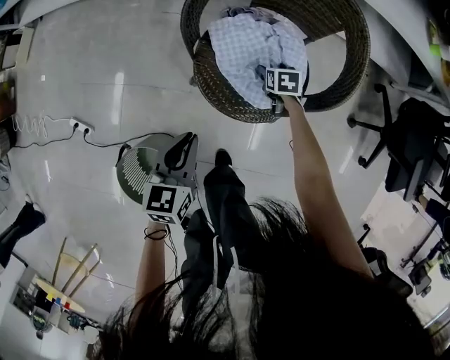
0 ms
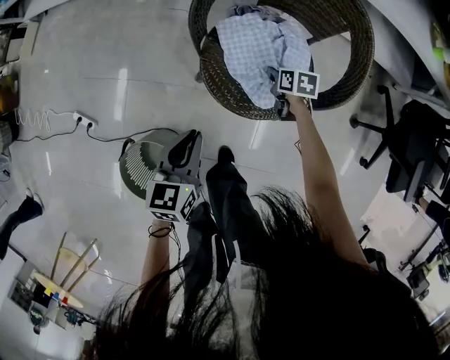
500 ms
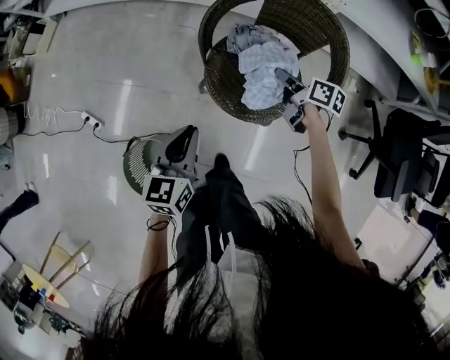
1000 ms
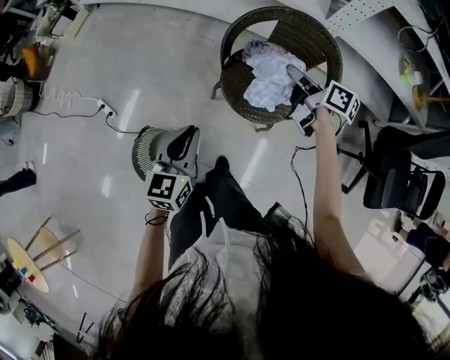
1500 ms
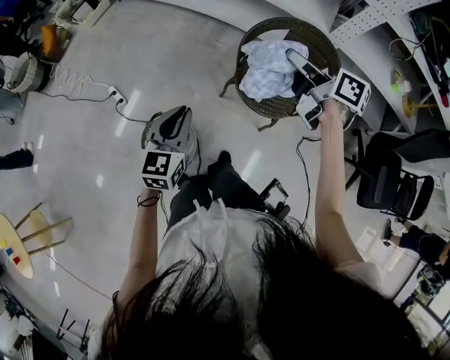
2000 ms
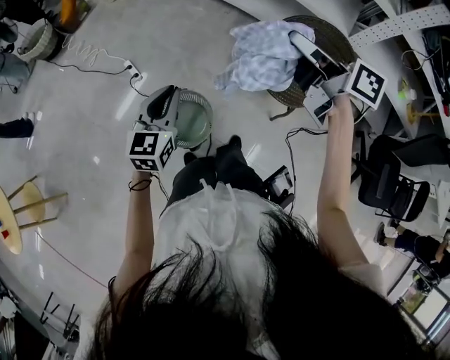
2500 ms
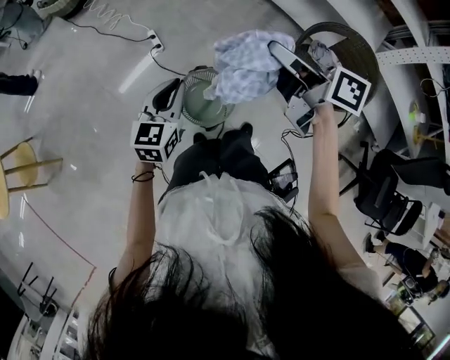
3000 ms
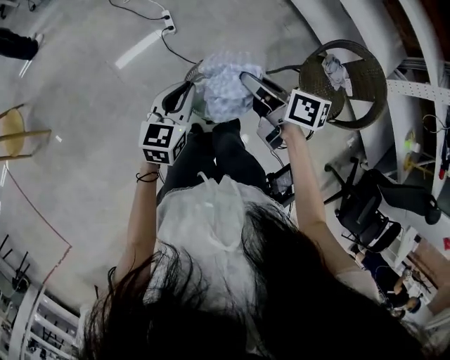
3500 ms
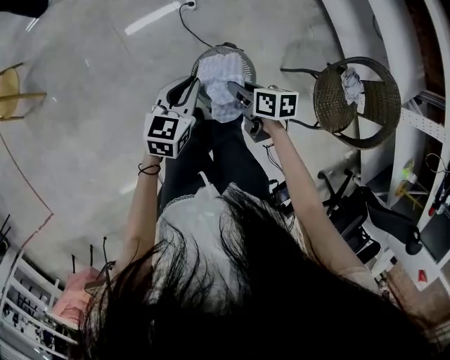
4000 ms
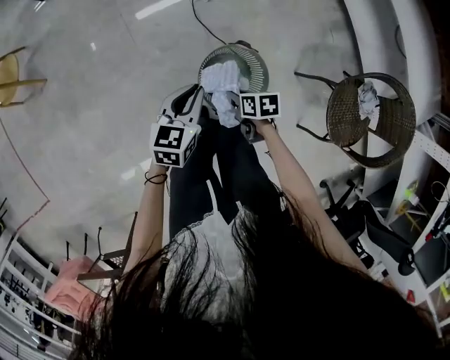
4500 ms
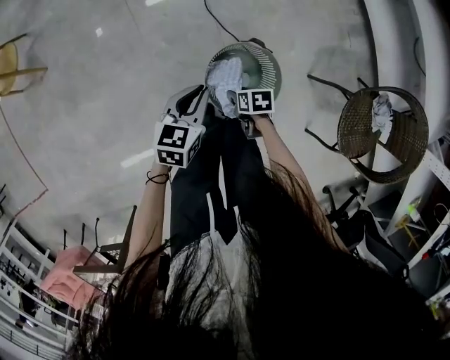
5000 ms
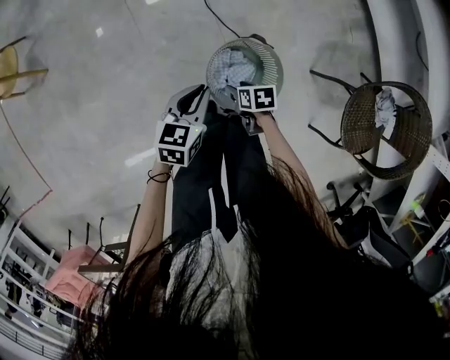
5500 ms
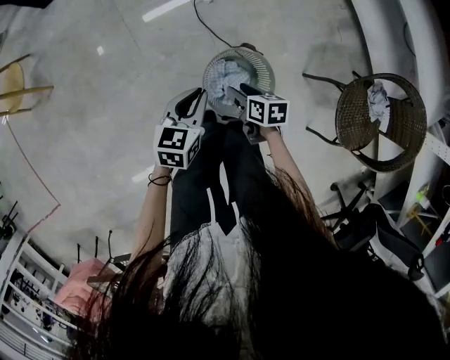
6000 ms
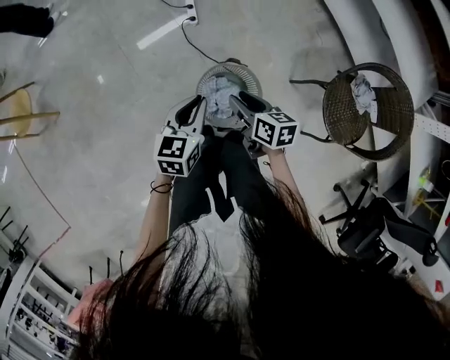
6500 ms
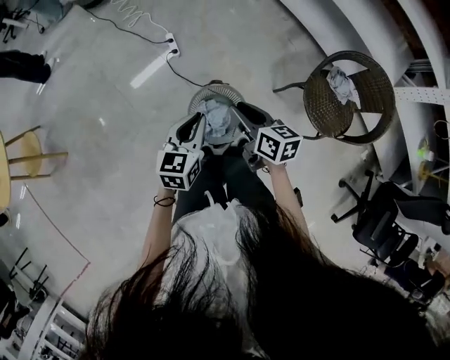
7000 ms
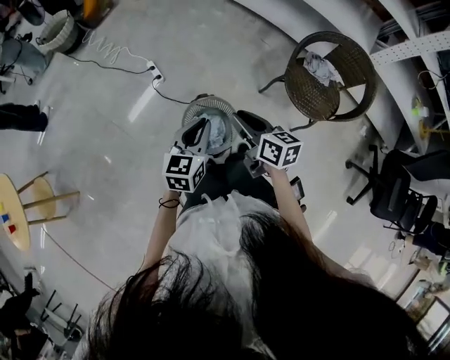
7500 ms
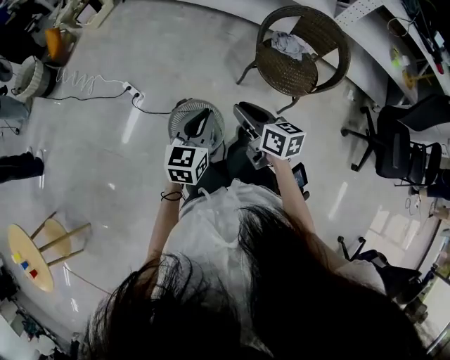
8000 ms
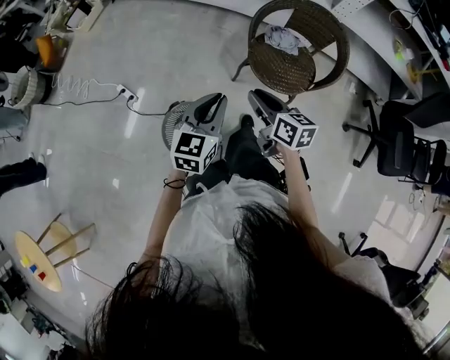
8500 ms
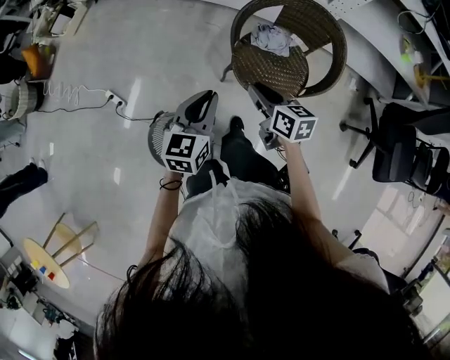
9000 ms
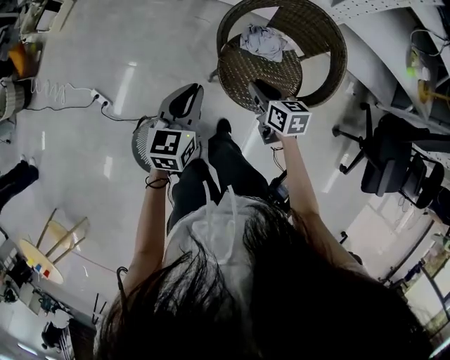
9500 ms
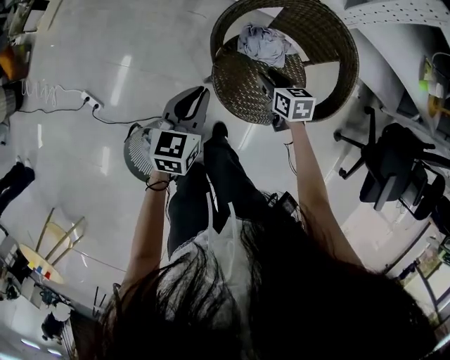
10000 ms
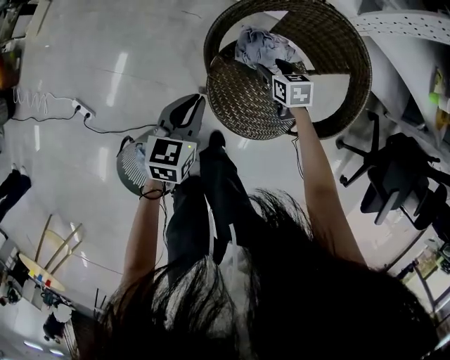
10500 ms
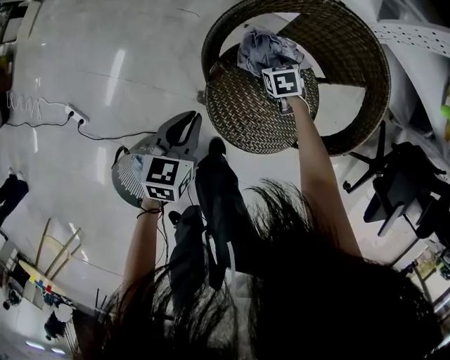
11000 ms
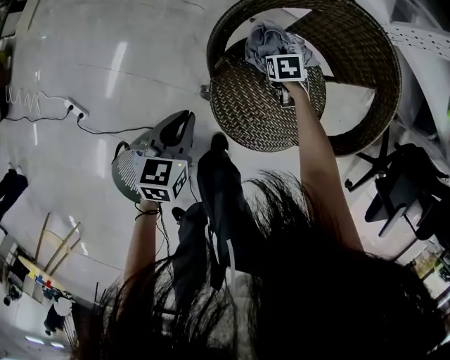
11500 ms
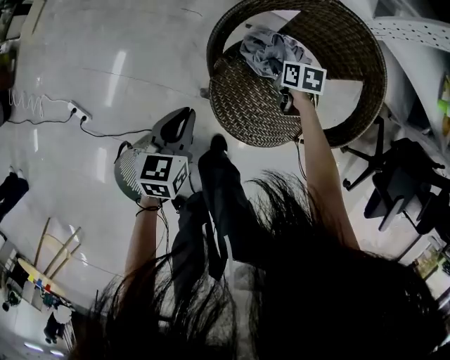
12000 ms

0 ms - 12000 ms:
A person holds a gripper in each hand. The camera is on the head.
0 ms - 2000 ms: The right gripper is displaced upward by about 60 cm, points its fingers about 50 degrees further upward, and closes up. Meanwhile the left gripper travels upward by some 25 cm, and turns by some 30 degrees.
2000 ms - 4000 ms: The left gripper ends up approximately 40 cm from where it was, and changes its angle by roughly 30 degrees; the right gripper changes place by about 60 cm, and tilts its fingers approximately 30 degrees downward.
4000 ms - 6000 ms: Both grippers travel together downward, roughly 15 cm. The right gripper opens up.
6000 ms - 8000 ms: The right gripper heads upward, covering about 30 cm, swivels some 50 degrees, and closes its fingers. The left gripper changes place by approximately 30 cm, and turns by roughly 40 degrees.
8000 ms - 10000 ms: The pair of grippers is taken forward and to the right, approximately 50 cm. The right gripper shifts some 25 cm downward, and changes its angle by approximately 20 degrees, while the left gripper is displaced downward by approximately 15 cm.
10000 ms - 12000 ms: The grippers both shift downward by some 15 cm. The right gripper opens and closes again.

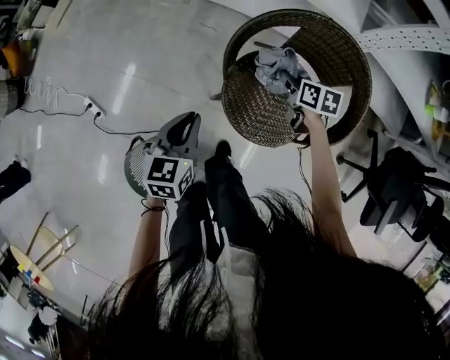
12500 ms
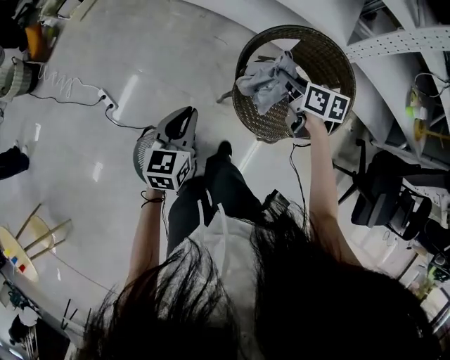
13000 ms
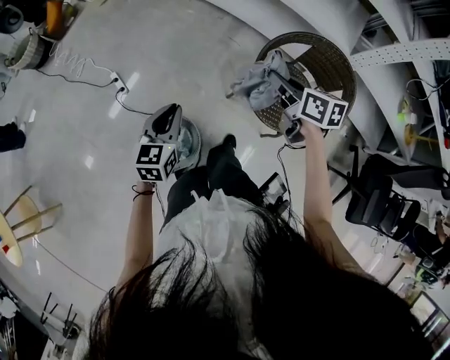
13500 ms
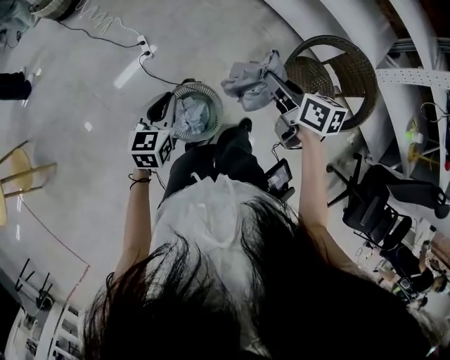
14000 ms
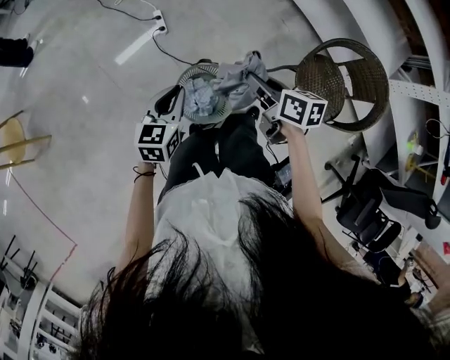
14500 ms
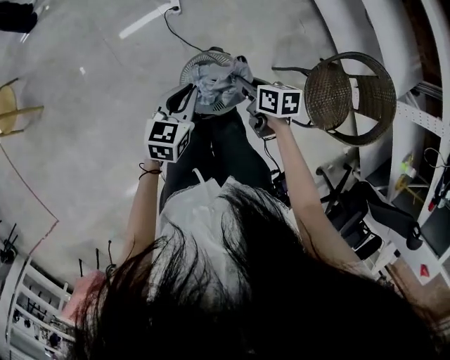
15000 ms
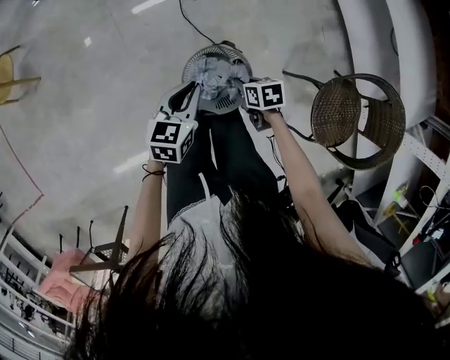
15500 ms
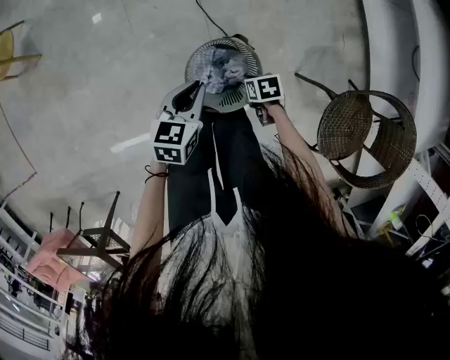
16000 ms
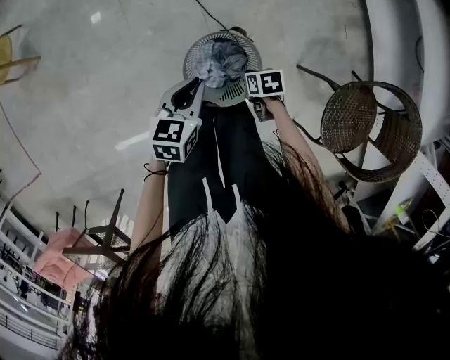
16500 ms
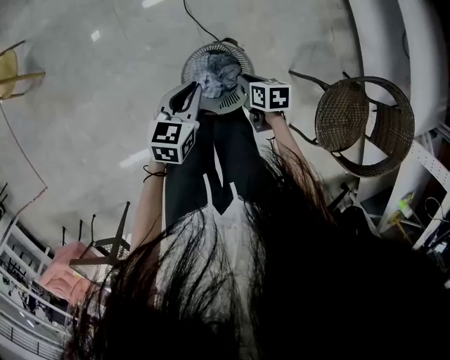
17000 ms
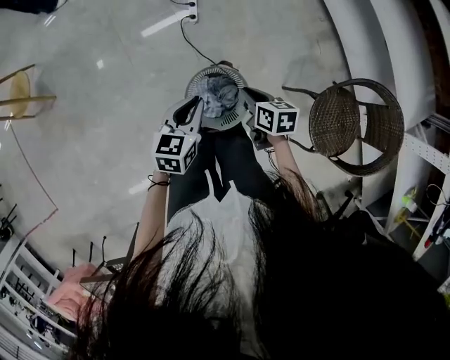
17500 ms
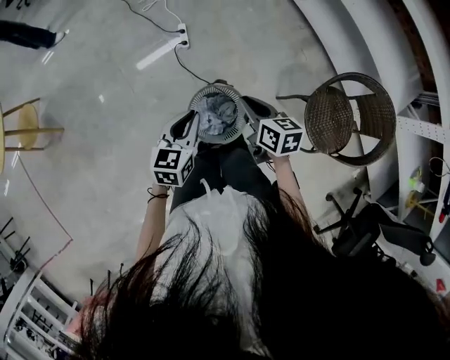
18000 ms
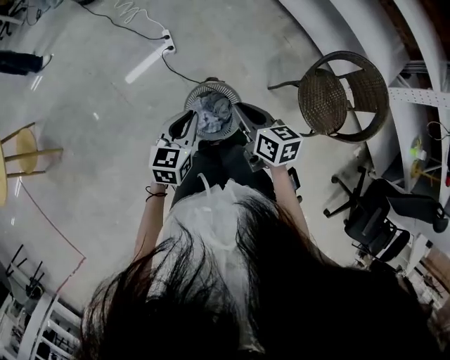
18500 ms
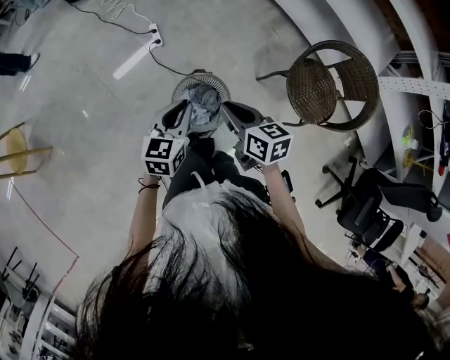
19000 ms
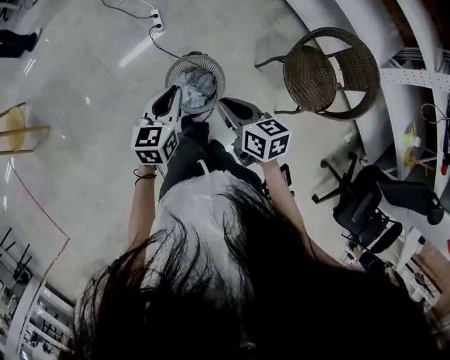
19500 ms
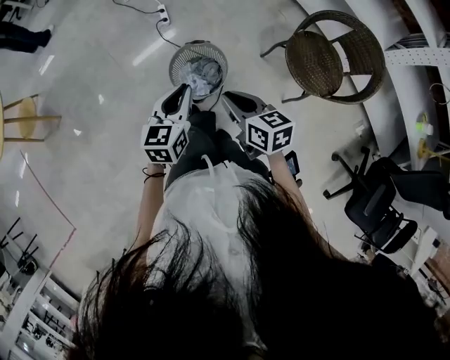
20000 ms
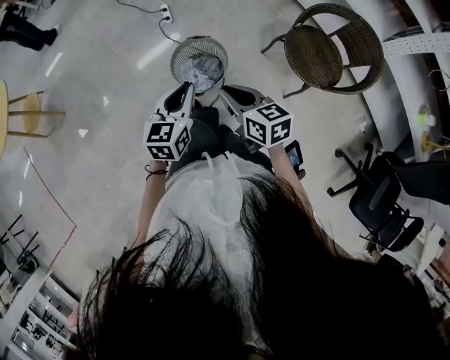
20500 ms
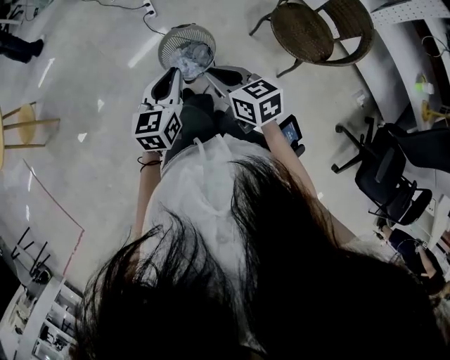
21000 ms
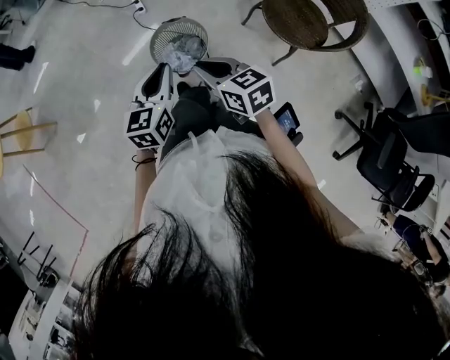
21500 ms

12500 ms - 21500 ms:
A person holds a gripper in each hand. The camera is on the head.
12500 ms - 14500 ms: The two grippers travel together, approximately 60 cm. The right gripper swivels about 40 degrees. Meanwhile the left gripper rotates about 30 degrees.
14500 ms - 17000 ms: The right gripper goes approximately 30 cm downward, and swivels roughly 30 degrees. The left gripper shifts some 10 cm downward.
17000 ms - 19500 ms: The right gripper goes about 30 cm upward, and swivels approximately 30 degrees. Meanwhile the left gripper shifts some 15 cm upward.
19500 ms - 21500 ms: Both grippers travel together backward, about 15 cm.

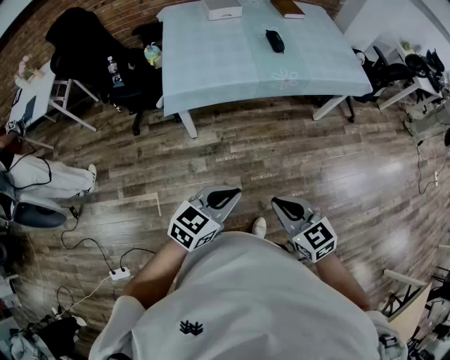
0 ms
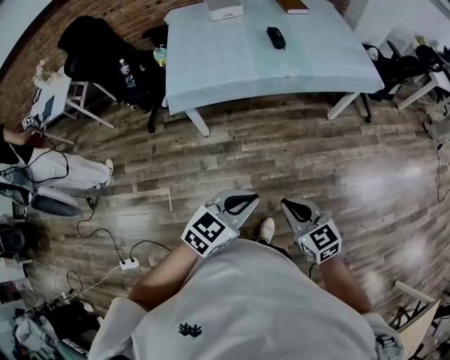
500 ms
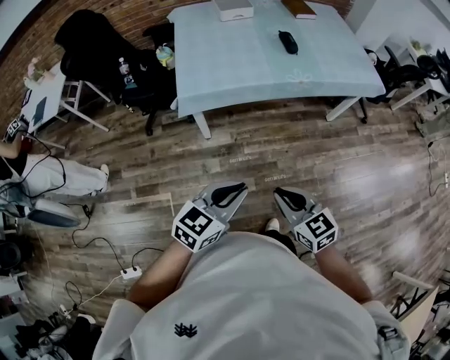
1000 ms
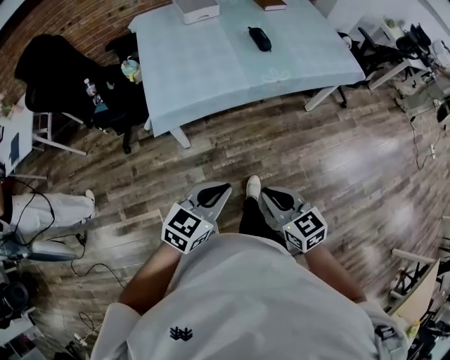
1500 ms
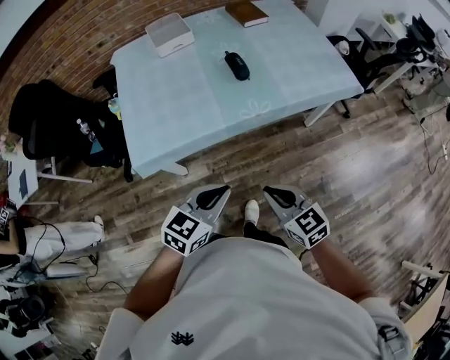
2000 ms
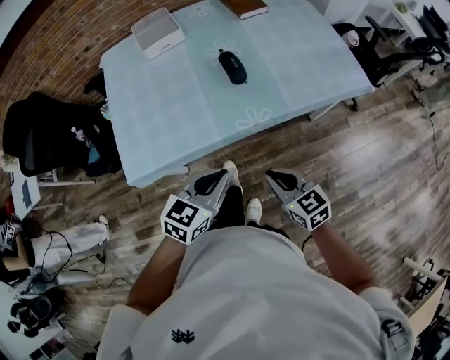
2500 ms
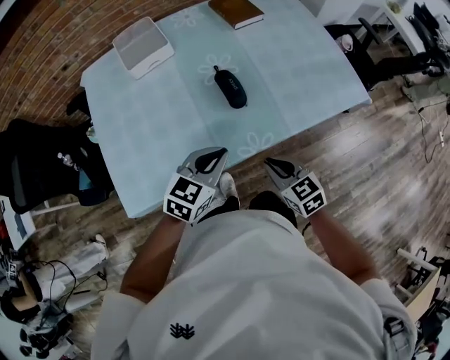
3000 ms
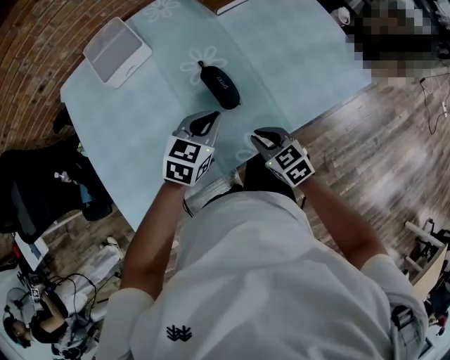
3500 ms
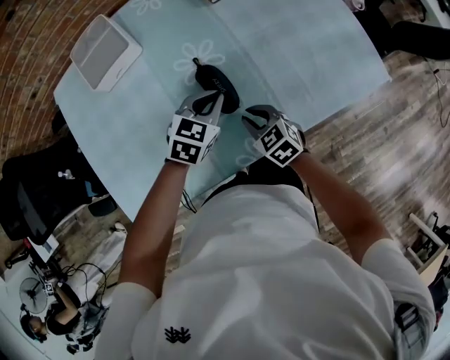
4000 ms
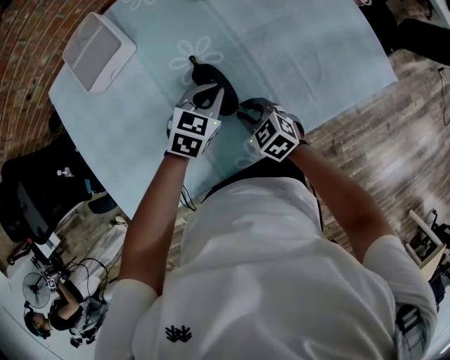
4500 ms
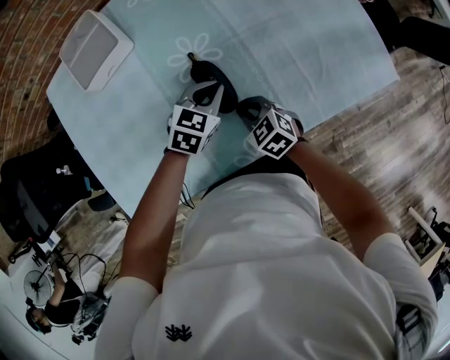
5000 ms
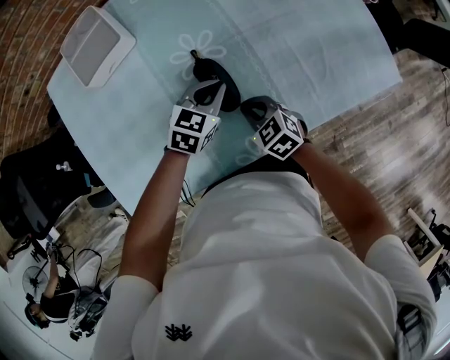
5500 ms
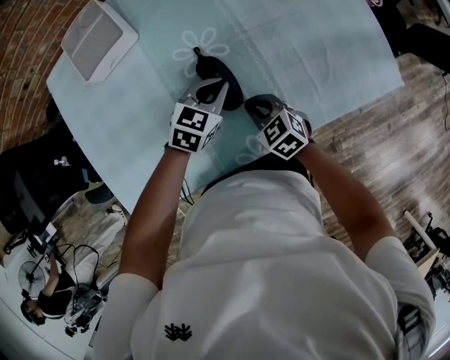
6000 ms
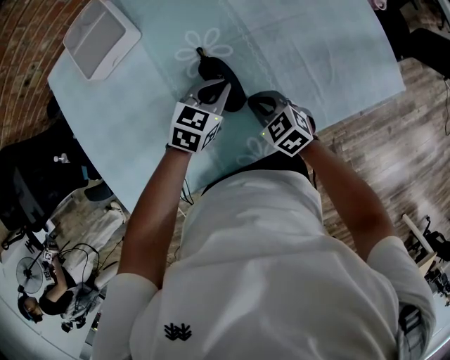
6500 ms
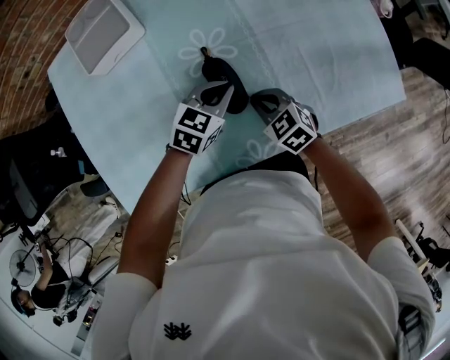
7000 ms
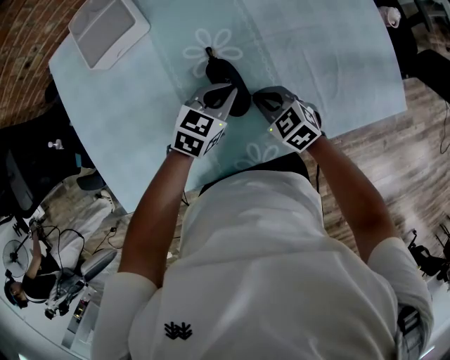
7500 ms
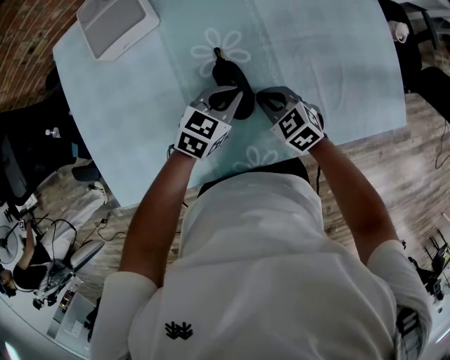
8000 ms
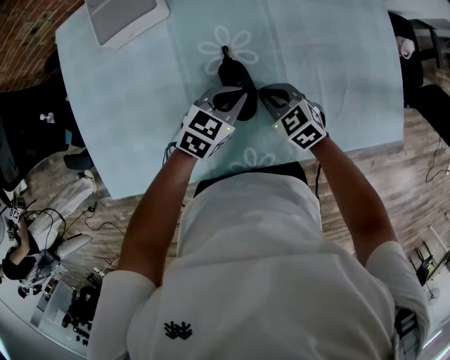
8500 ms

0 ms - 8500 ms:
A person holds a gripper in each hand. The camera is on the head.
0 ms - 2000 ms: Both grippers move forward, some 25 cm.
2000 ms - 4000 ms: Both grippers are carried forward, about 50 cm. The right gripper shifts approximately 20 cm downward, and rotates some 20 degrees.
4000 ms - 6500 ms: There are only small adjustments of the grippers.
6500 ms - 8500 ms: The right gripper heads forward, covering about 5 cm.
